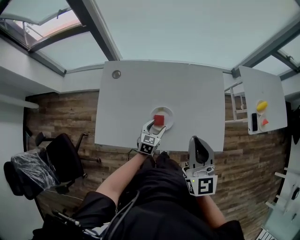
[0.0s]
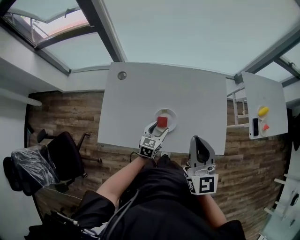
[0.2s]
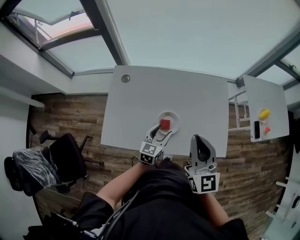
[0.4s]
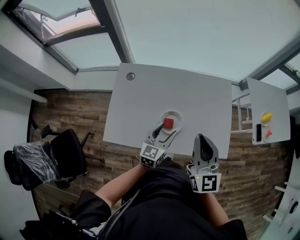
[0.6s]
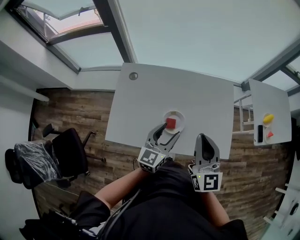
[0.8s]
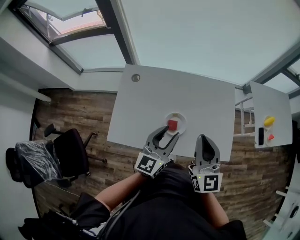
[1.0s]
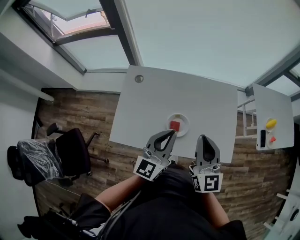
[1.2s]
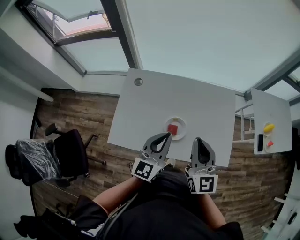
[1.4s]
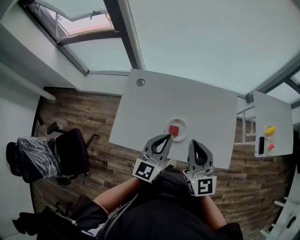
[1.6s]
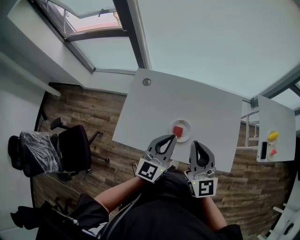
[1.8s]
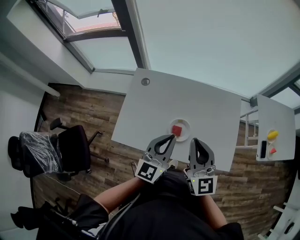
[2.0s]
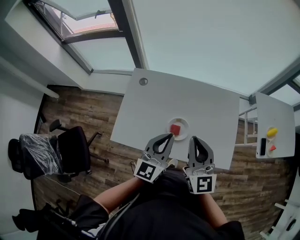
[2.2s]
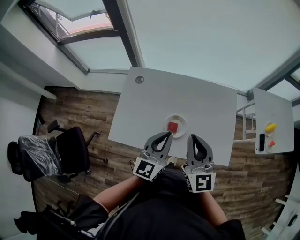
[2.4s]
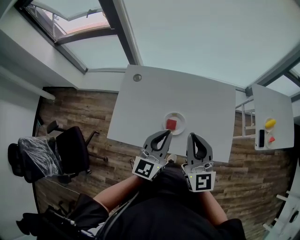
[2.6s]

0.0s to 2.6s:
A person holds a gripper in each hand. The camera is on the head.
0.0s to 1.2s: The left gripper is displaced upward by roughly 30 cm, tips its fingers upward by approximately 40 degrees, and closes.
1.2s to 2.6s: The grippers stay close to where they were, moving slightly.

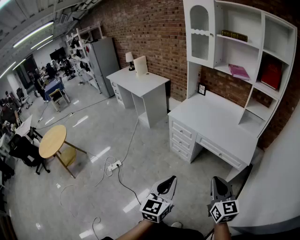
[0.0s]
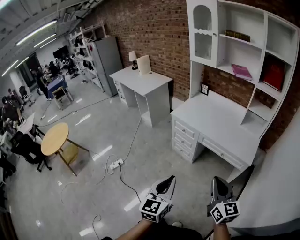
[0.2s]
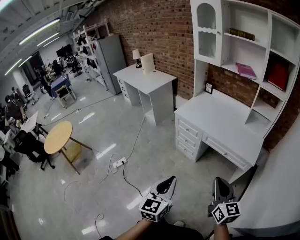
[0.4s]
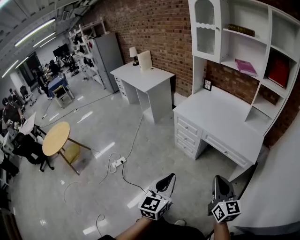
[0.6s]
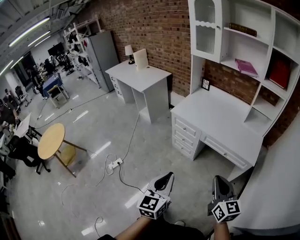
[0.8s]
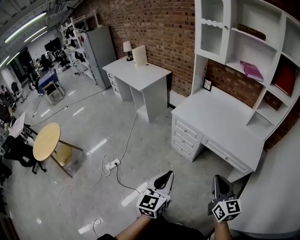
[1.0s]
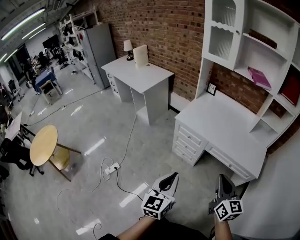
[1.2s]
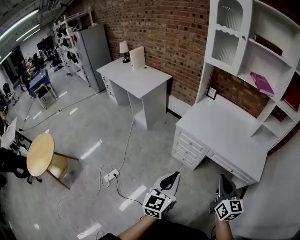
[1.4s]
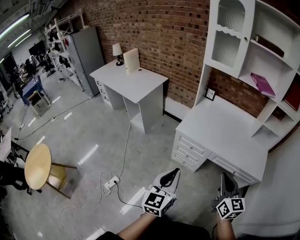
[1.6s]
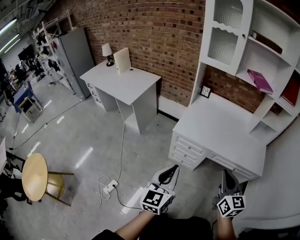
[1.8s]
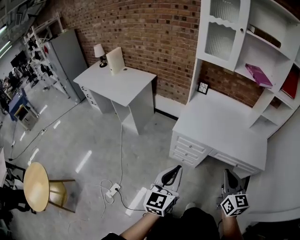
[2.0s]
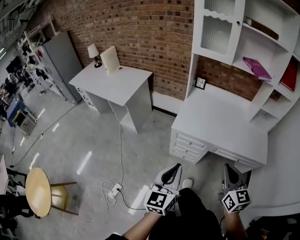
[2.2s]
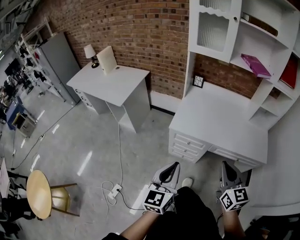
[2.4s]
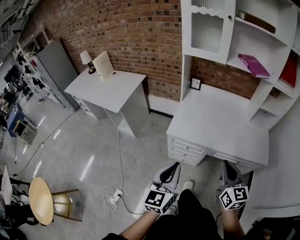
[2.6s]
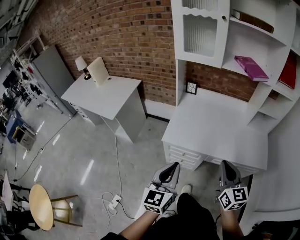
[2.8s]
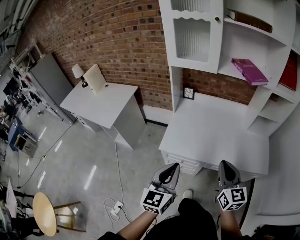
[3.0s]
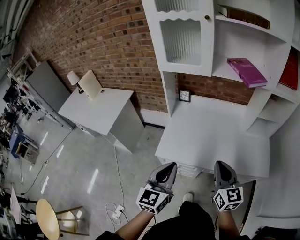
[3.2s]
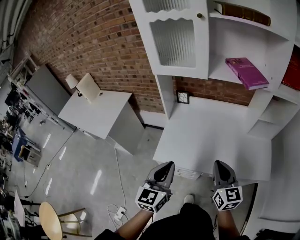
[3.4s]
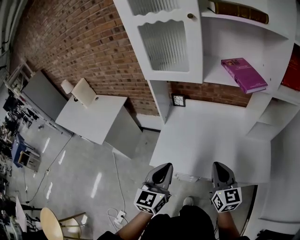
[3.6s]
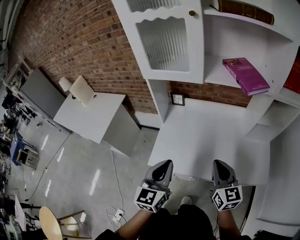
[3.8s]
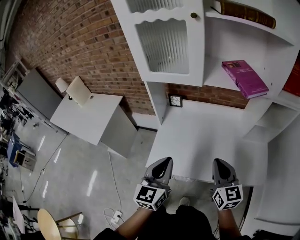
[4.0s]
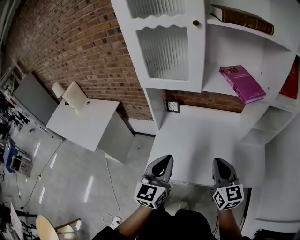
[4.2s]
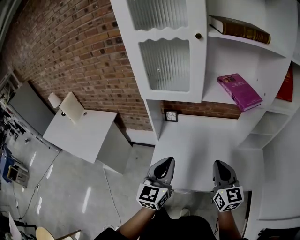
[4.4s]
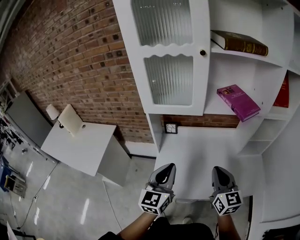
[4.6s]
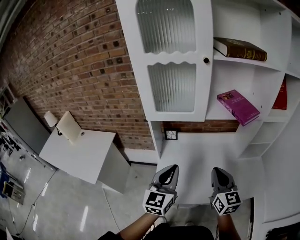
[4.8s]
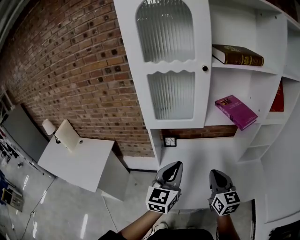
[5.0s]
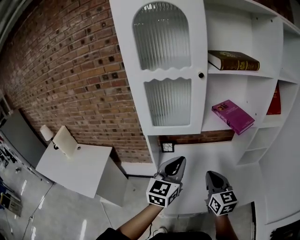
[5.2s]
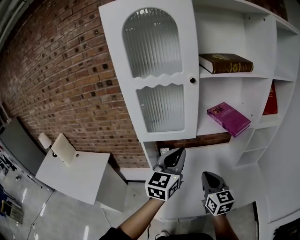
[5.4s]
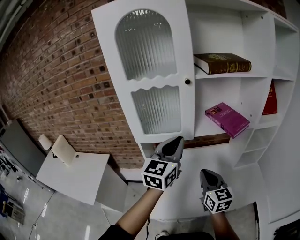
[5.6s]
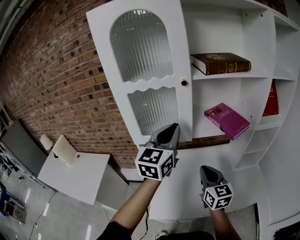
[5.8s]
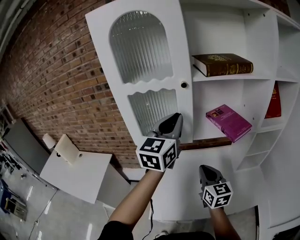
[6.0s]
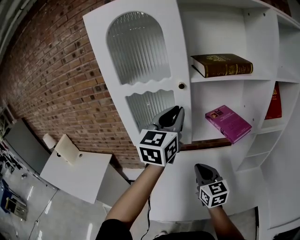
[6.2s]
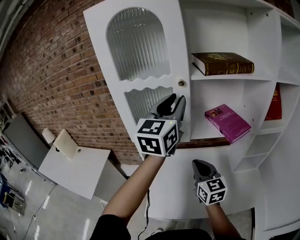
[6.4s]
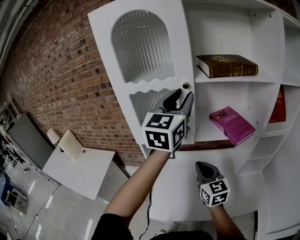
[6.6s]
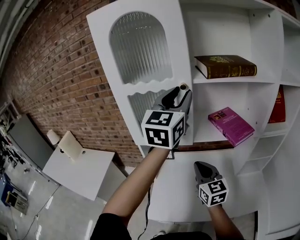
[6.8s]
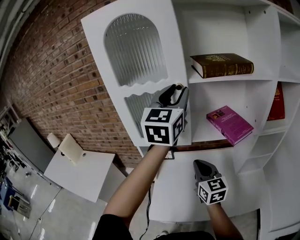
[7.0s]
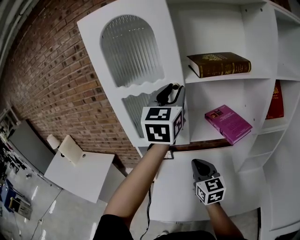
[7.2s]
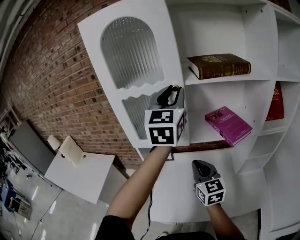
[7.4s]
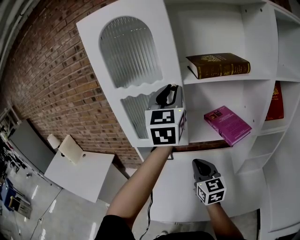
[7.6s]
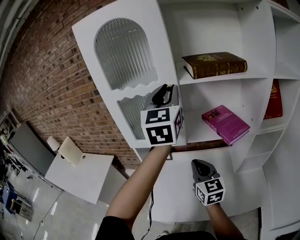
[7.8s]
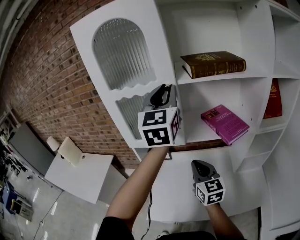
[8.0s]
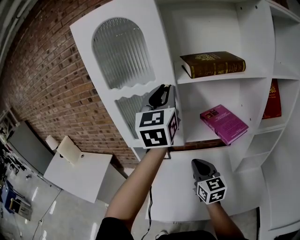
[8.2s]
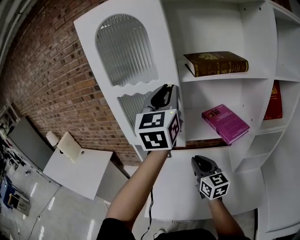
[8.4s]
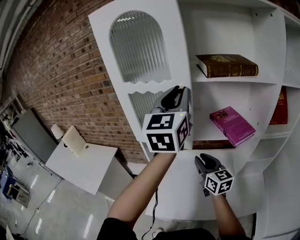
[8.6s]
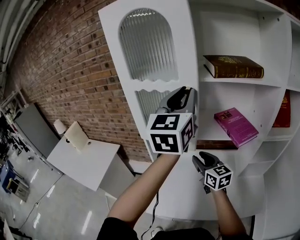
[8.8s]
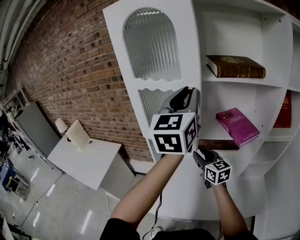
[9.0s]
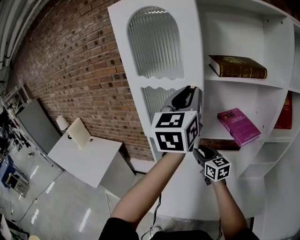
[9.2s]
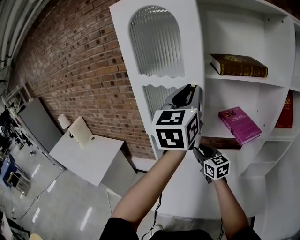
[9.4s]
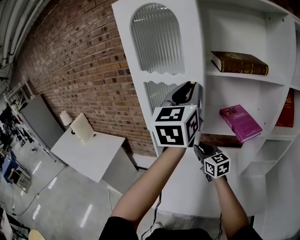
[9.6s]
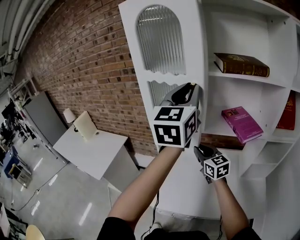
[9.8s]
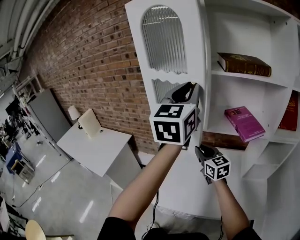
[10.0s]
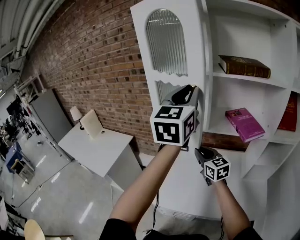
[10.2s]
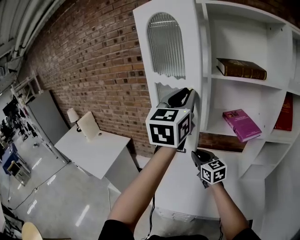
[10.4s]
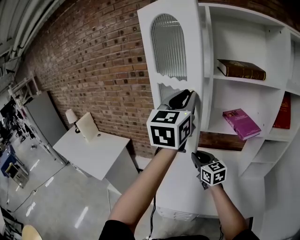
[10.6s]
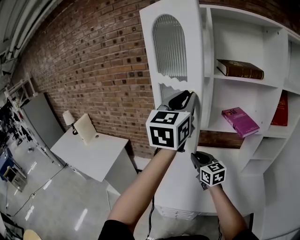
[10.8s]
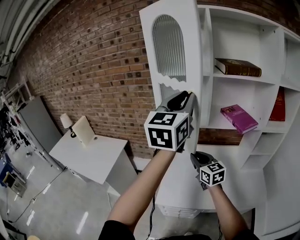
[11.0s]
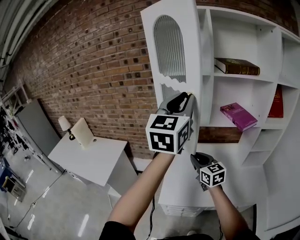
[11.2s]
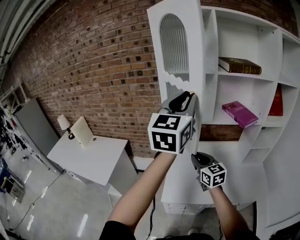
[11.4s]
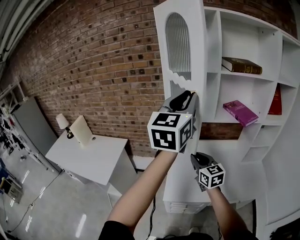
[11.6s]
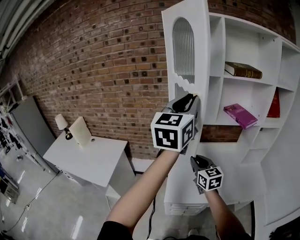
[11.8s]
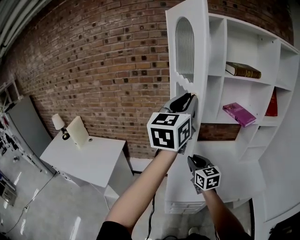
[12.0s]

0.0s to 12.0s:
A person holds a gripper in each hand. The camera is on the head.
0.0s to 1.6s: Both grippers travel together forward and to the left, some 40 cm.
1.6s to 3.0s: Both grippers travel together forward, about 25 cm.
3.0s to 4.4s: The two grippers go approximately 20 cm forward.
4.4s to 6.0s: The right gripper travels forward and to the left by some 15 cm; the left gripper travels upward and forward by about 35 cm.
6.0s to 7.6s: The left gripper is displaced upward by some 10 cm, and turns by roughly 20 degrees.
7.6s to 9.0s: The left gripper goes roughly 5 cm backward. Meanwhile the right gripper heads forward, covering approximately 5 cm, and opens up.
9.0s to 10.4s: The two grippers go roughly 10 cm backward and to the left.
10.4s to 12.0s: Both grippers travel together to the left and backward, roughly 20 cm.

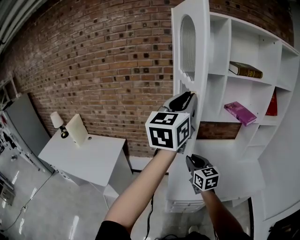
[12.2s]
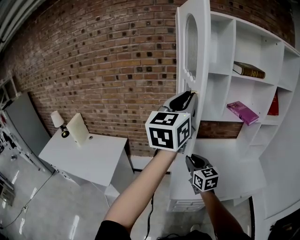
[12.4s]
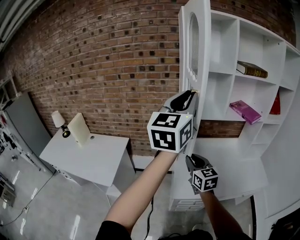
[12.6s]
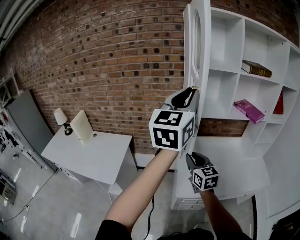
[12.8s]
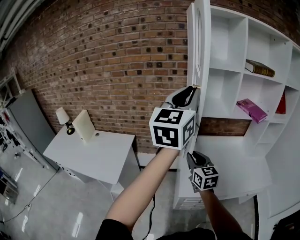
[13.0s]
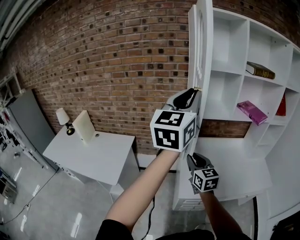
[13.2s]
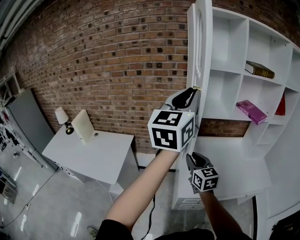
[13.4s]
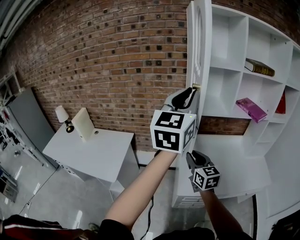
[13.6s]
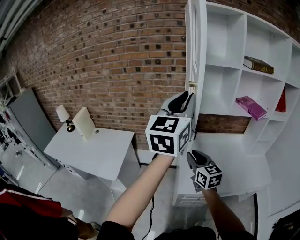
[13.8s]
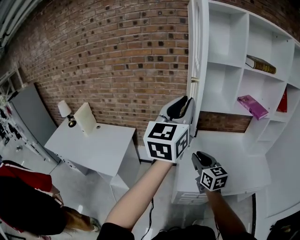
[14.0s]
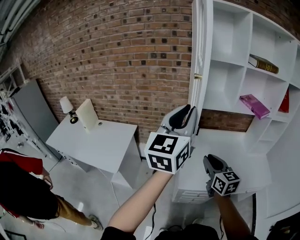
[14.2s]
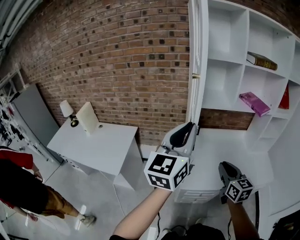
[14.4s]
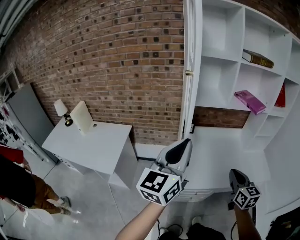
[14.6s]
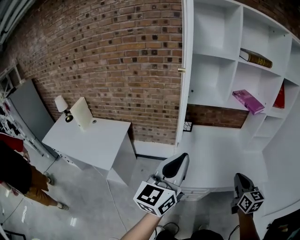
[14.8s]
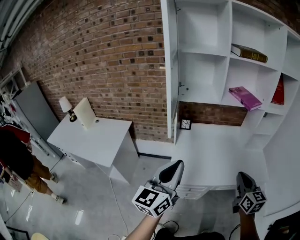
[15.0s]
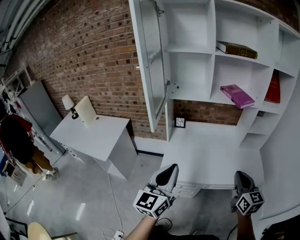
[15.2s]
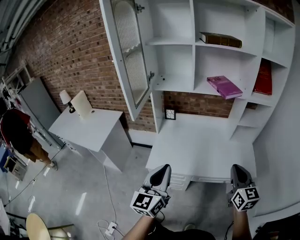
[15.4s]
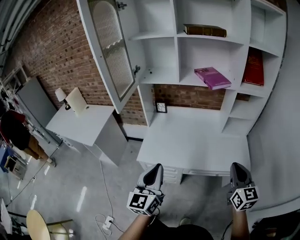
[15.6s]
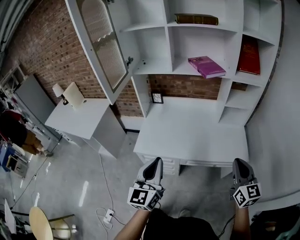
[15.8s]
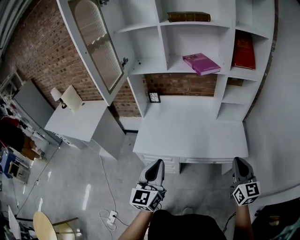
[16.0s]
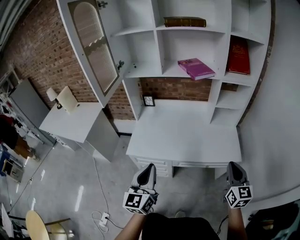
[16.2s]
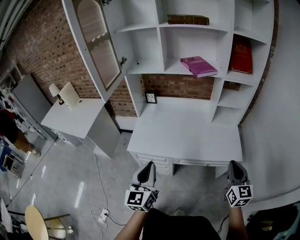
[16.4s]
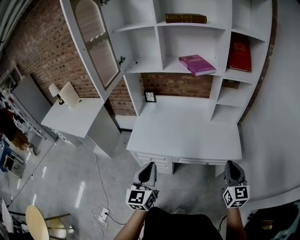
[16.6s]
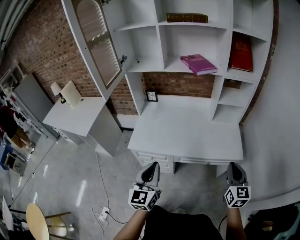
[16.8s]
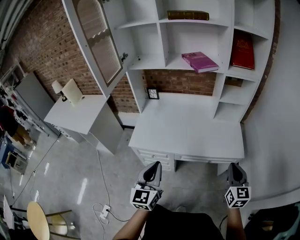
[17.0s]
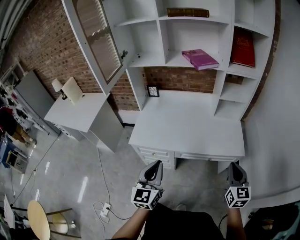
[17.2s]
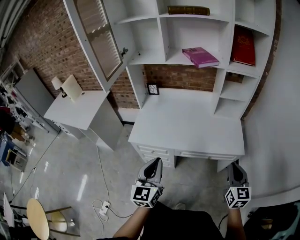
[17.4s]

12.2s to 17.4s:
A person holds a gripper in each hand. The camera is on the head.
12.2s to 14.0s: The right gripper changes place by about 5 cm; the left gripper is displaced to the left by about 10 cm.
14.0s to 15.6s: The left gripper is displaced to the right, downward and backward by about 50 cm, while the right gripper heads to the right, covering some 60 cm.
15.6s to 17.4s: The left gripper shifts roughly 10 cm to the right and downward; the right gripper goes about 15 cm to the right, downward and backward.

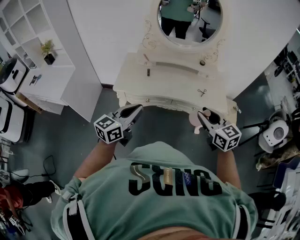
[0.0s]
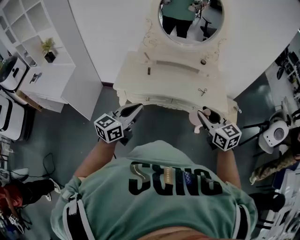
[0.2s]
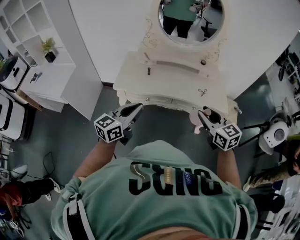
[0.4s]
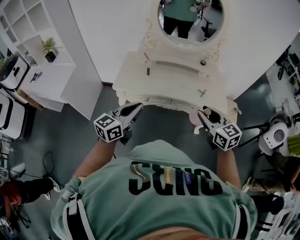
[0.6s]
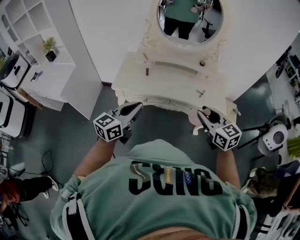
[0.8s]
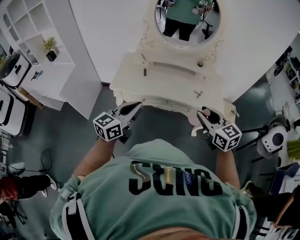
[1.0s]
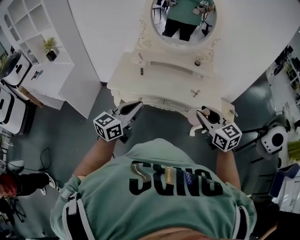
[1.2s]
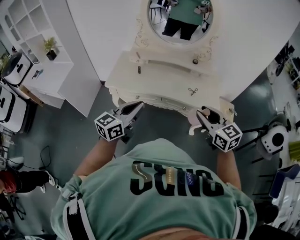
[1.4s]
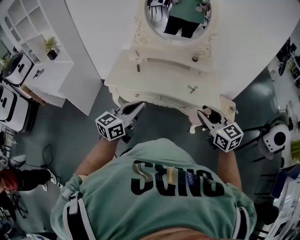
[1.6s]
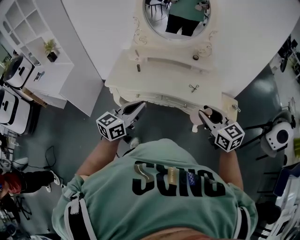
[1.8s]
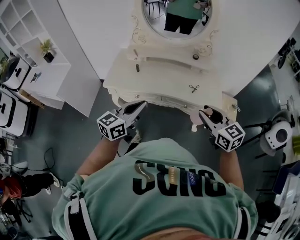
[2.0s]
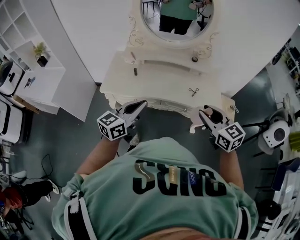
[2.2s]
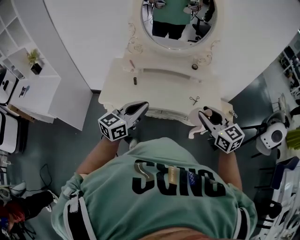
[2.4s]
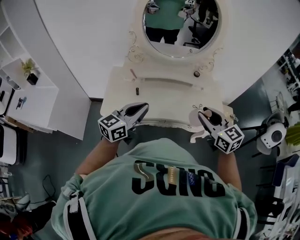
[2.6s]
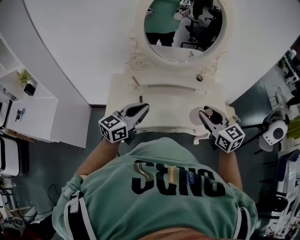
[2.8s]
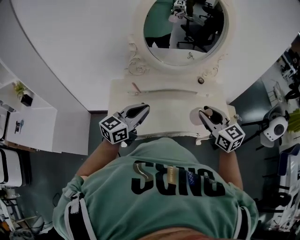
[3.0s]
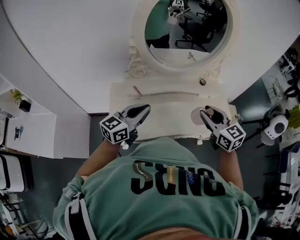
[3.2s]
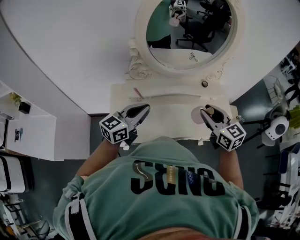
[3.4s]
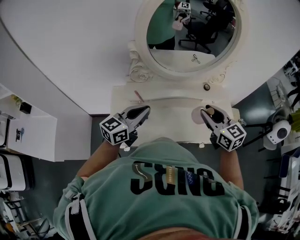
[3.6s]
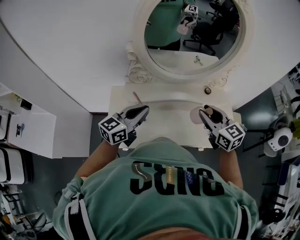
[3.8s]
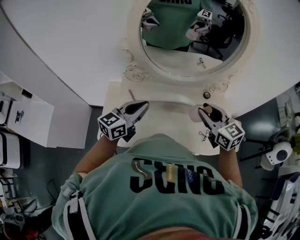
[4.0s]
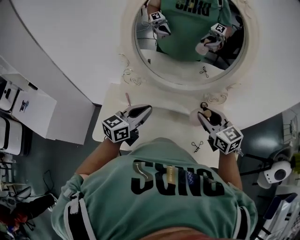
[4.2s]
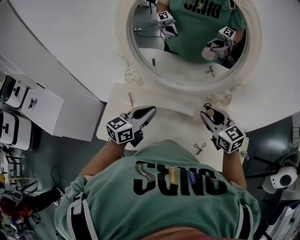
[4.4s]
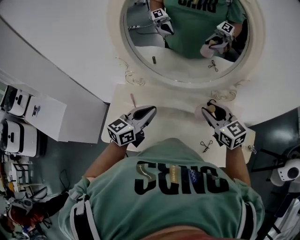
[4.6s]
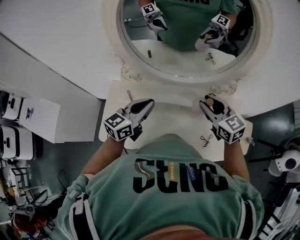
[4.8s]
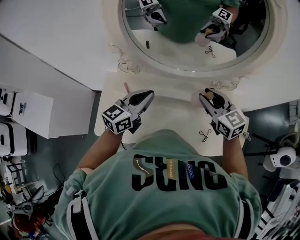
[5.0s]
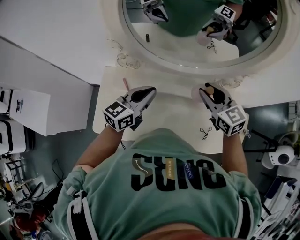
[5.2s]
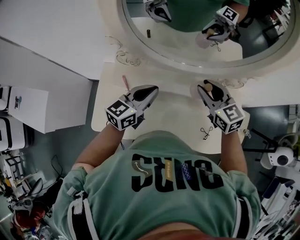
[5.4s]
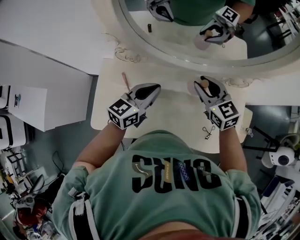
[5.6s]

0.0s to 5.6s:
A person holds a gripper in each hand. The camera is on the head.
0.0s to 1.4s: Both grippers travel together to the right, about 10 cm.
1.4s to 2.8s: The grippers both shift forward and to the left by approximately 25 cm.
2.8s to 4.2s: Both grippers travel together forward, some 25 cm.
4.2s to 5.6s: The left gripper goes roughly 15 cm forward and downward. The right gripper goes roughly 20 cm forward, downward and to the left.
